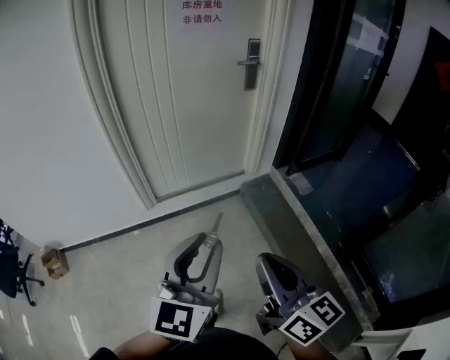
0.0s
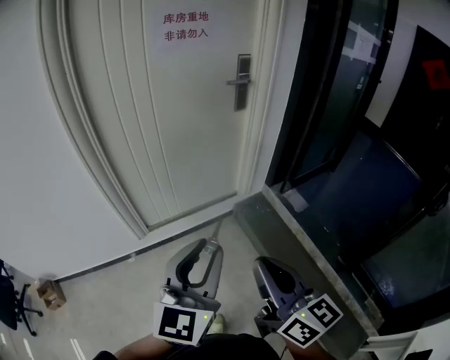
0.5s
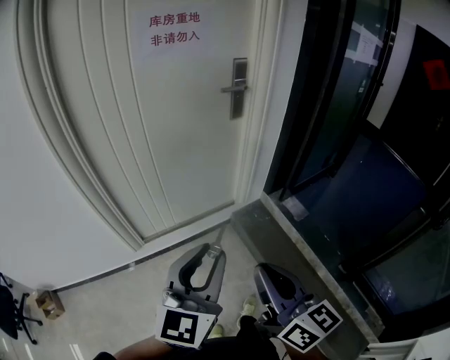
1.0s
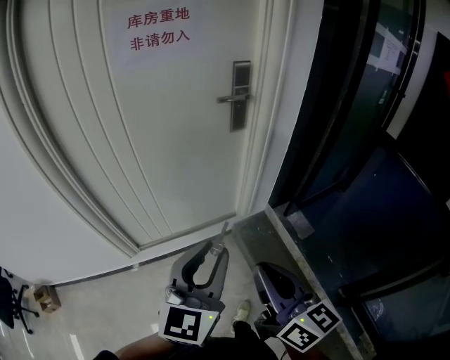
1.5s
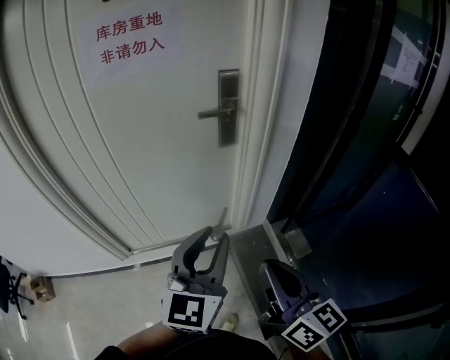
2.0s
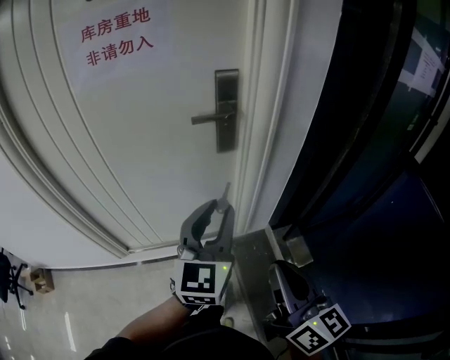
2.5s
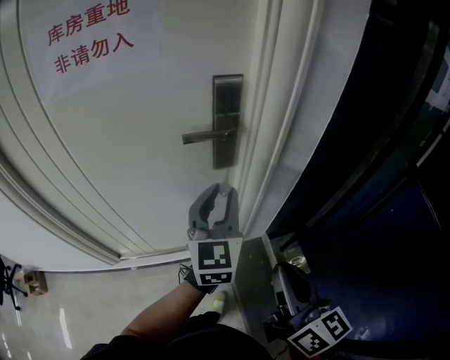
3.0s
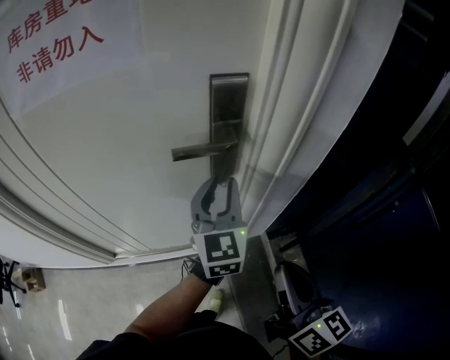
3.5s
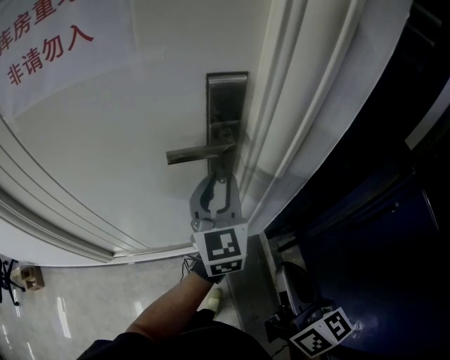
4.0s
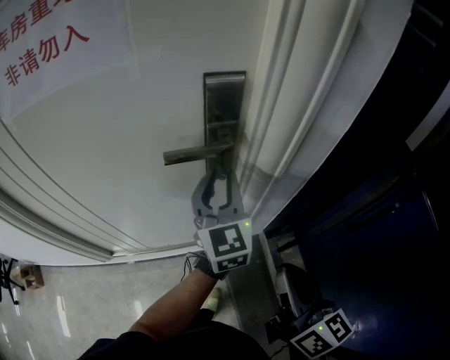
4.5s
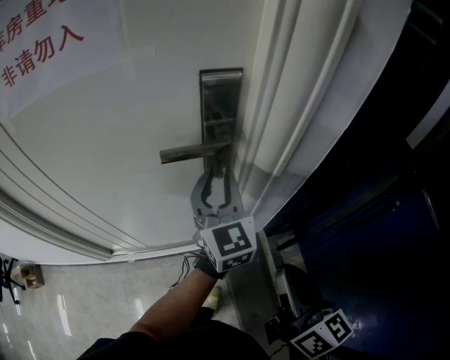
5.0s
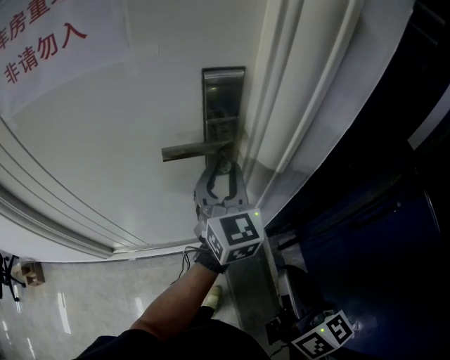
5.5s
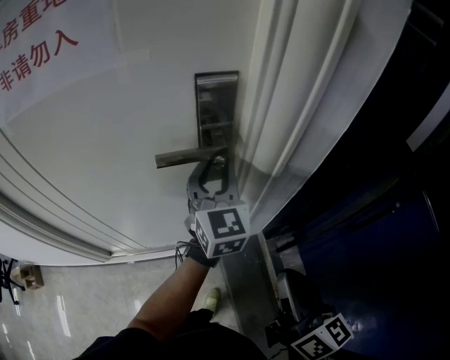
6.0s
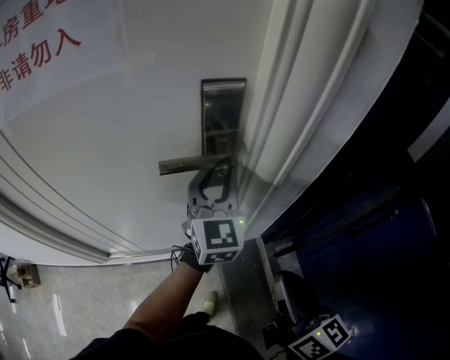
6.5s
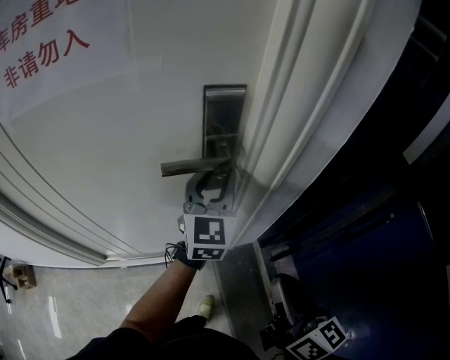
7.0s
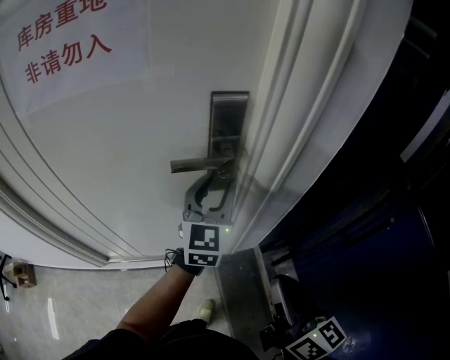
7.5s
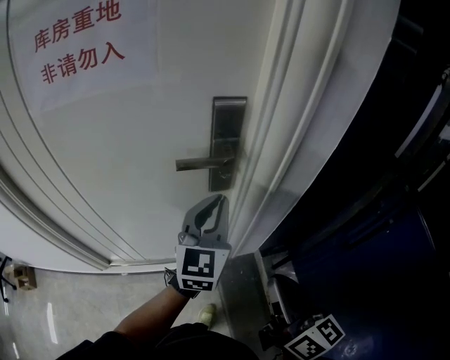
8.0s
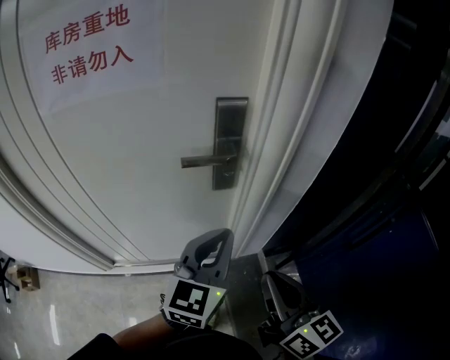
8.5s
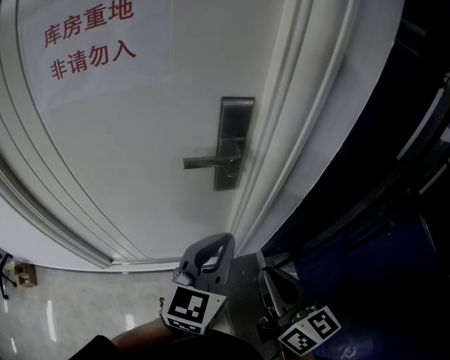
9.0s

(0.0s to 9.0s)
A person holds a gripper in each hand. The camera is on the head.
0.0s - 2.0s: The pair of grippers is taken forward and to the right, some 50 cm.
2.0s - 4.5s: The left gripper shifts roughly 40 cm forward, and rotates about 20 degrees, while the right gripper travels forward and to the right by approximately 30 cm.
4.5s - 7.0s: There are only small adjustments of the grippers.
7.0s - 9.0s: The left gripper goes some 20 cm backward, and closes up, while the right gripper changes place by some 5 cm.

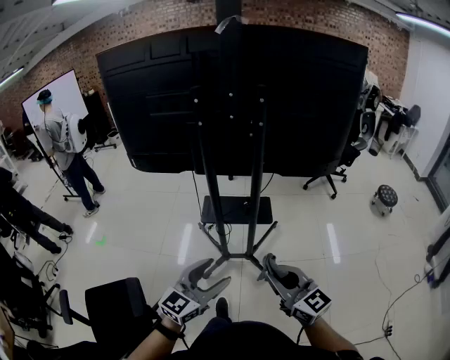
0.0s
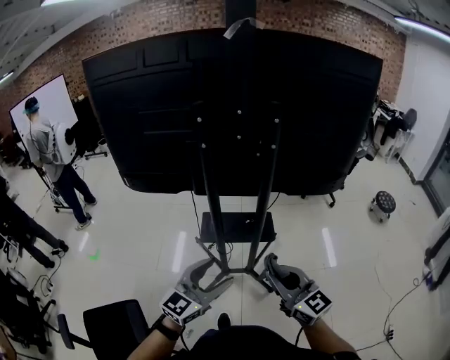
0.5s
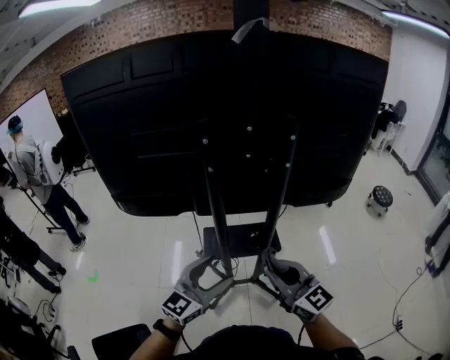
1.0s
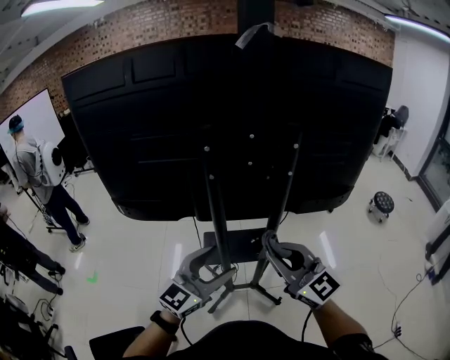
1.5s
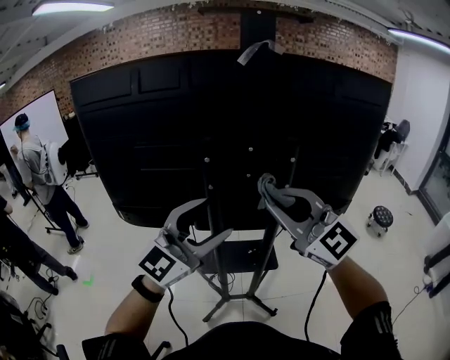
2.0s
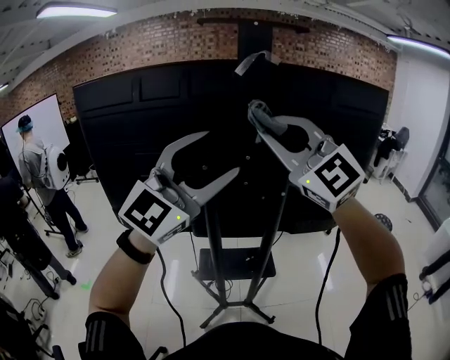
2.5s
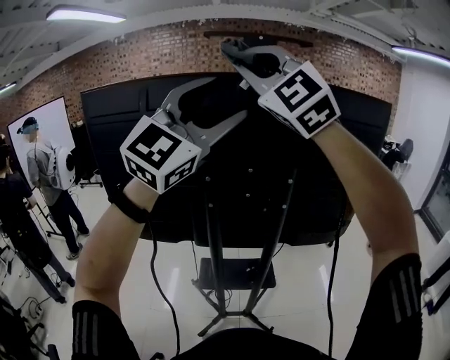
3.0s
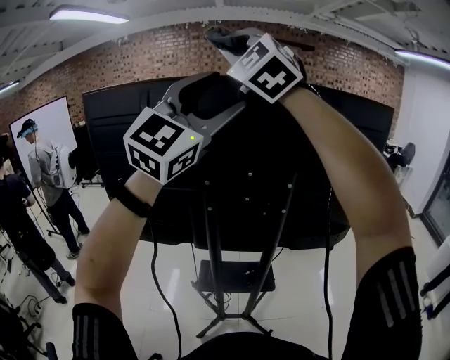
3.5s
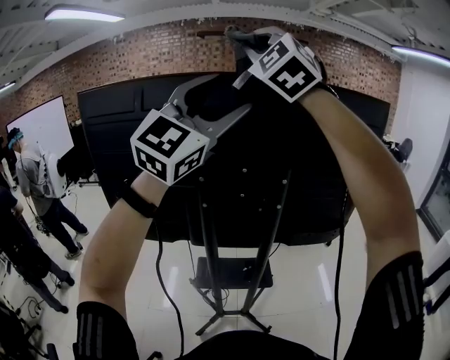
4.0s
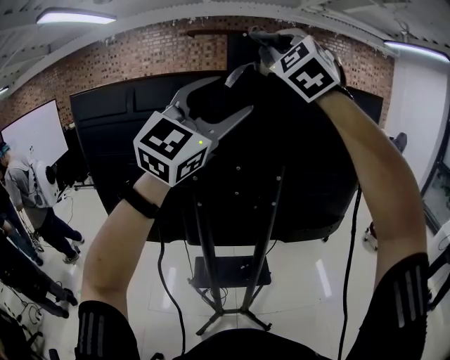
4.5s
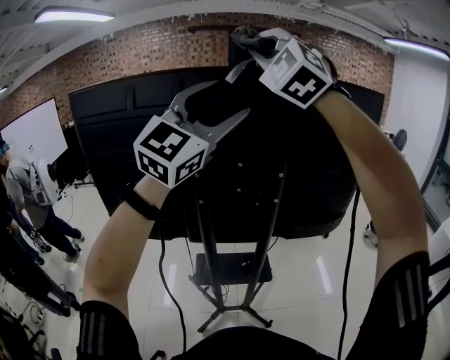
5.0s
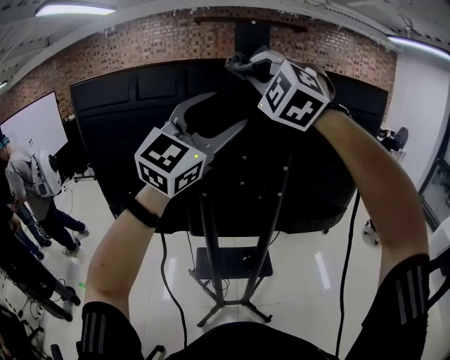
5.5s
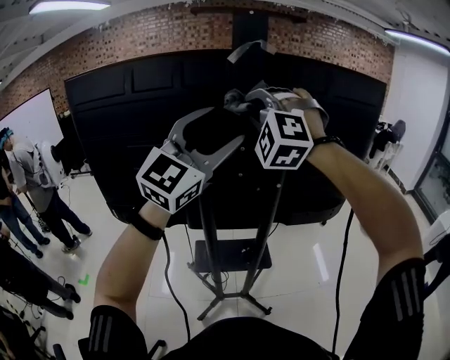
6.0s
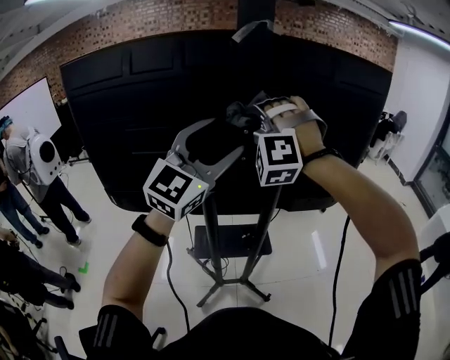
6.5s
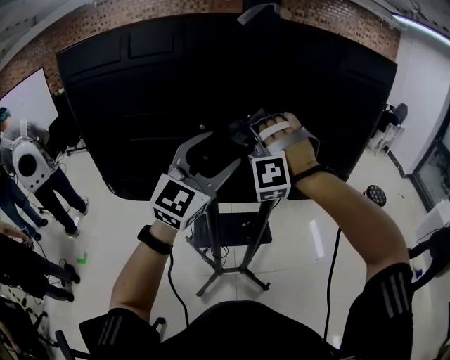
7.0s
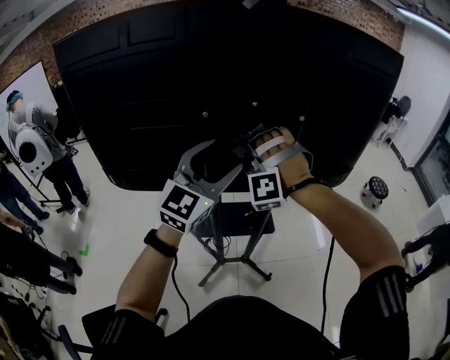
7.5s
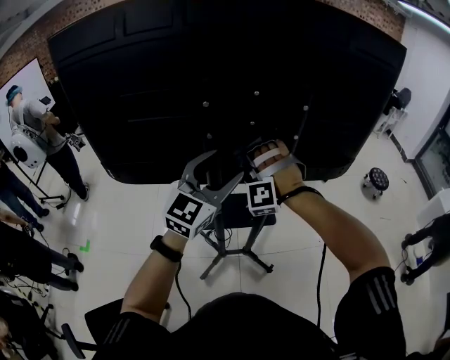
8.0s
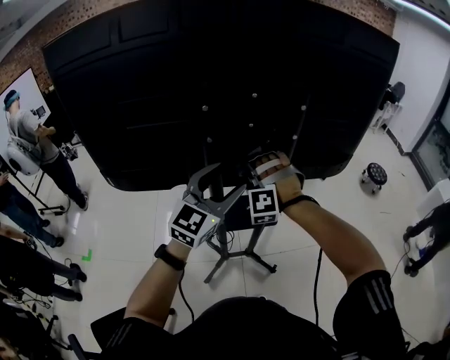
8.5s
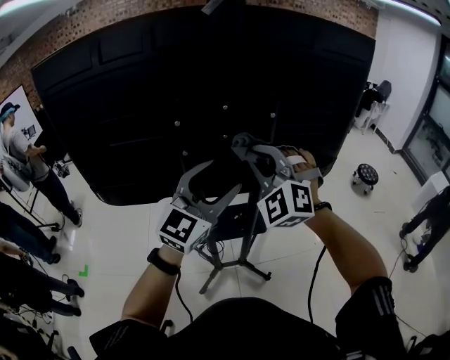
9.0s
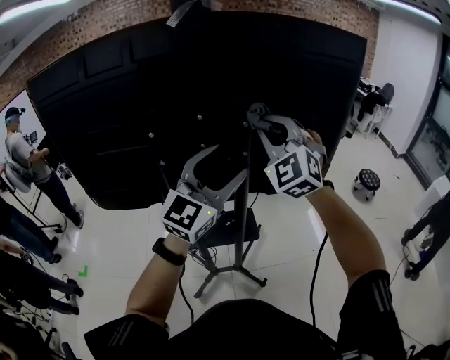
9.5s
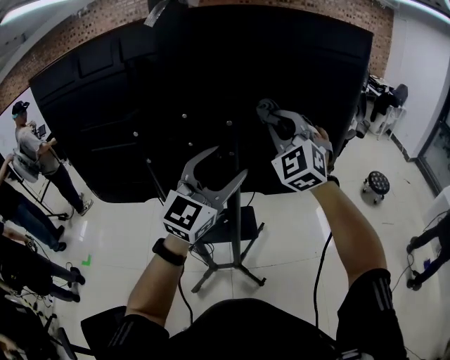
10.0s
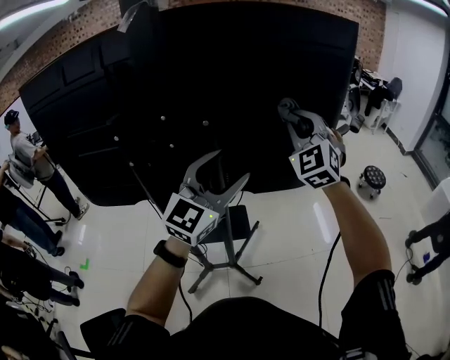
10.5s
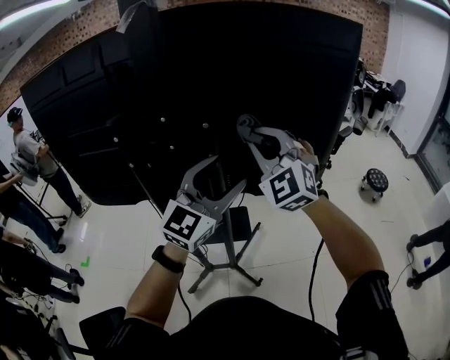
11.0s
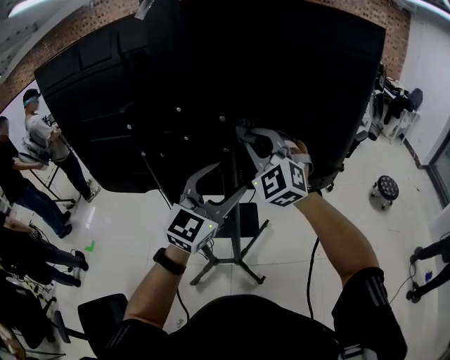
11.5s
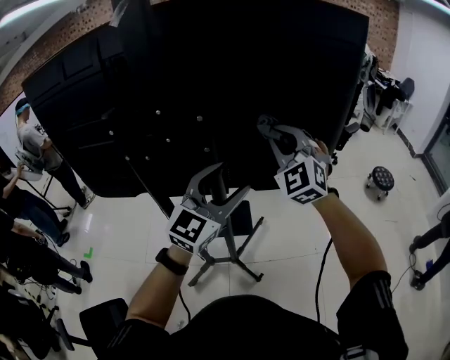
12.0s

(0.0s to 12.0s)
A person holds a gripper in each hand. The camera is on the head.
0.0s - 2.0s: The grippers both shift forward and upward by roughly 40 cm. The right gripper turns by approximately 40 degrees. The left gripper changes its angle by roughly 30 degrees.
2.0s - 4.0s: The right gripper is displaced upward and forward by some 35 cm, and twists some 40 degrees counterclockwise, seen from behind, while the left gripper shifts approximately 25 cm upward, and swivels some 20 degrees.
4.0s - 6.0s: The right gripper is displaced downward by about 20 cm, and swivels some 30 degrees; the left gripper goes some 10 cm downward.
6.0s - 8.0s: The two grippers go some 30 cm downward. The right gripper swivels approximately 30 degrees. The left gripper swivels approximately 20 degrees.
8.0s - 10.0s: The left gripper moves to the right and upward, some 15 cm, while the right gripper moves to the right and upward, roughly 30 cm, and rotates around the line of its fingers by roughly 60 degrees, clockwise from behind.
10.0s - 12.0s: The right gripper moves left and right over about 15 cm, changing direction 2 times. Meanwhile the left gripper goes some 10 cm downward and to the right.

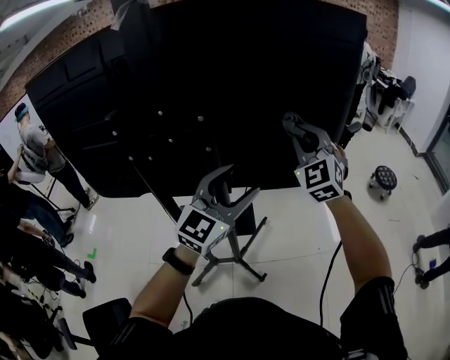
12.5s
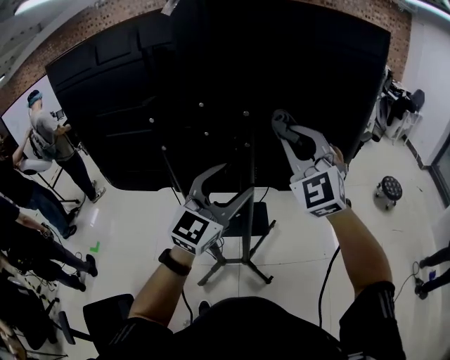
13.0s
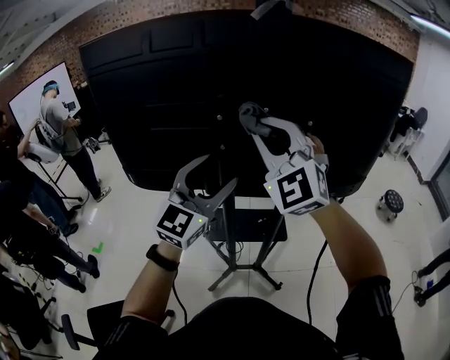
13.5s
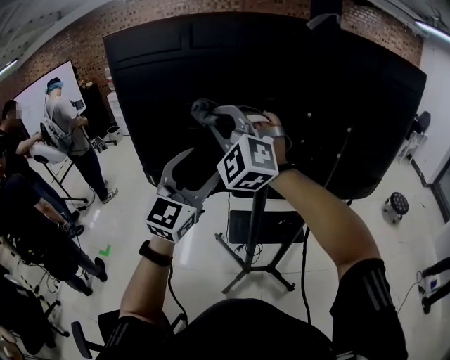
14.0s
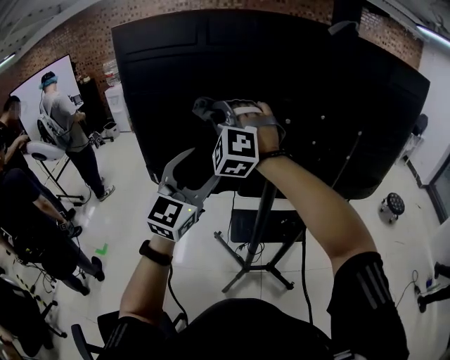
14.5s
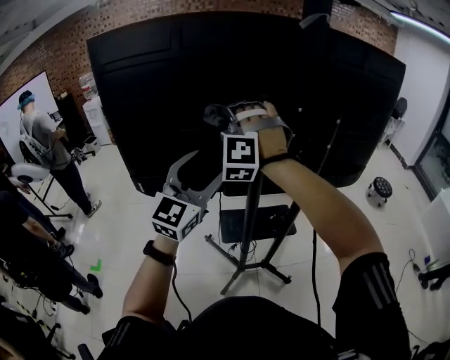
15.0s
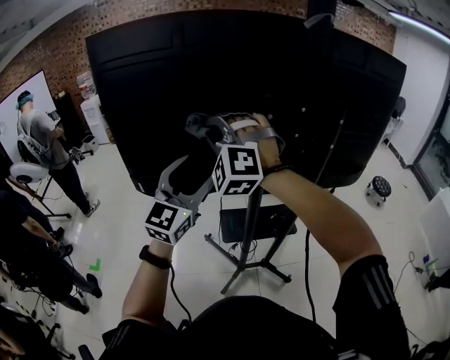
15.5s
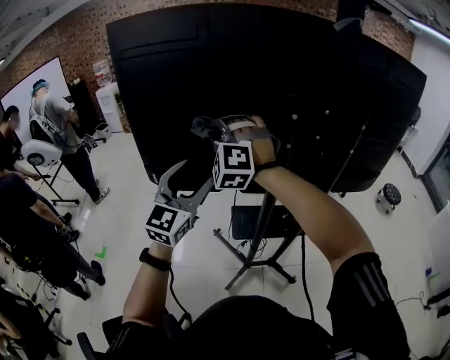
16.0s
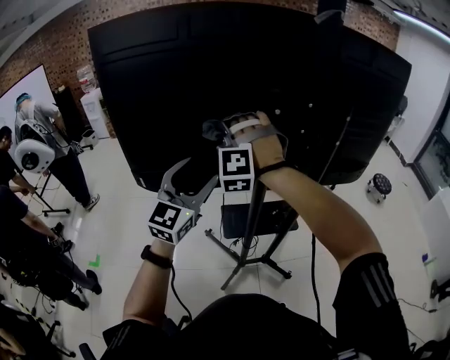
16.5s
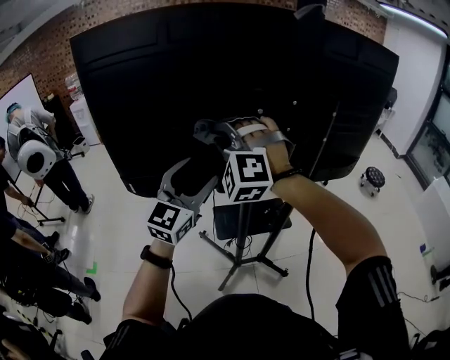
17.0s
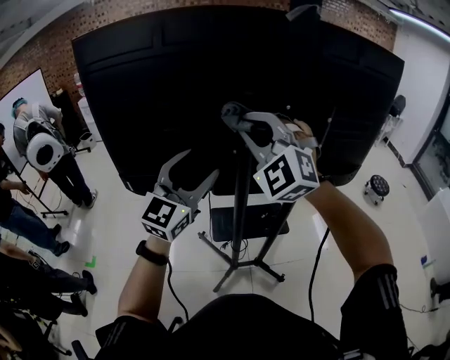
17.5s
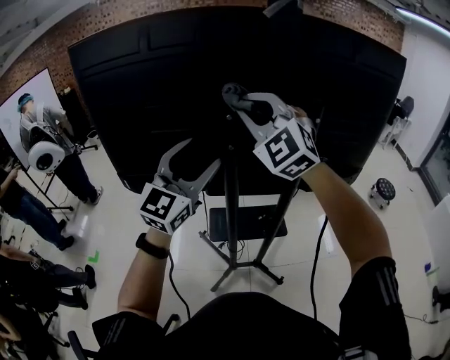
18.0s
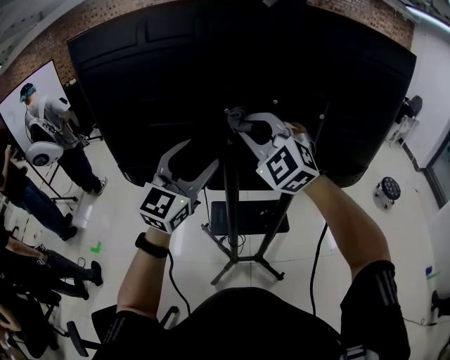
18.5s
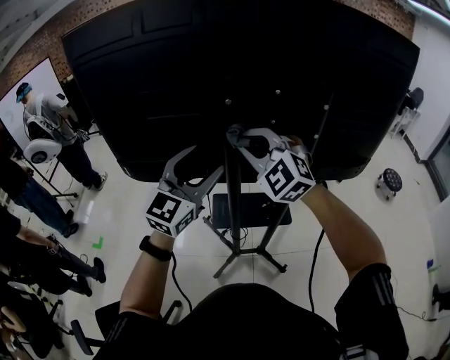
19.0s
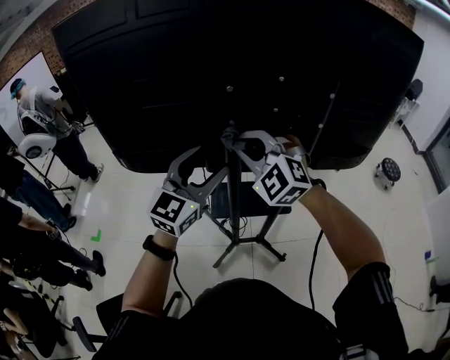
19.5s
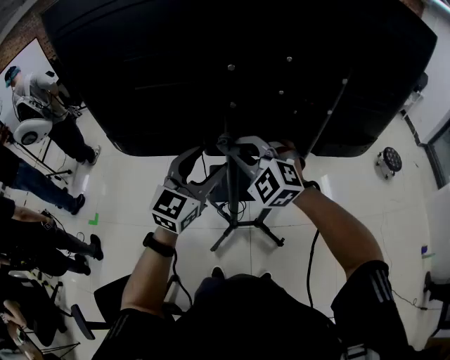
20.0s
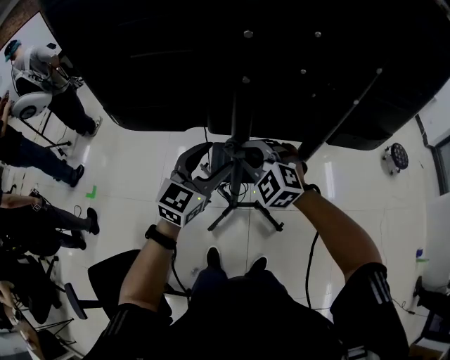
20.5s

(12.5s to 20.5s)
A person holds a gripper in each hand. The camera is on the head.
12.5s - 14.5s: Both grippers are carried to the left, some 60 cm. The right gripper turns by some 40 degrees.
14.5s - 16.5s: The left gripper swings left and right, roughly 10 cm each way, with 2 reversals; the right gripper moves left and right over roughly 10 cm, changing direction 2 times, and turns by roughly 30 degrees.
16.5s - 18.5s: The right gripper travels to the right by about 15 cm, and turns by some 50 degrees; the left gripper is displaced to the right and upward by approximately 15 cm.
18.5s - 20.5s: The grippers both shift downward by roughly 25 cm. The right gripper swivels some 30 degrees. Meanwhile the left gripper swivels some 20 degrees.
